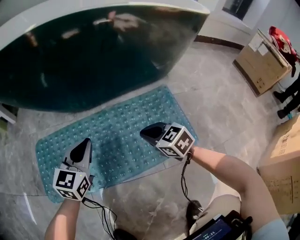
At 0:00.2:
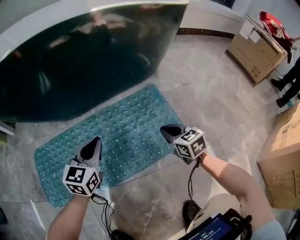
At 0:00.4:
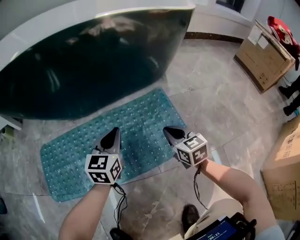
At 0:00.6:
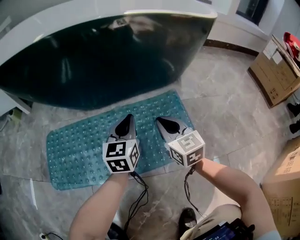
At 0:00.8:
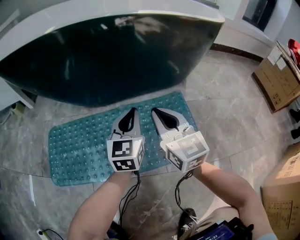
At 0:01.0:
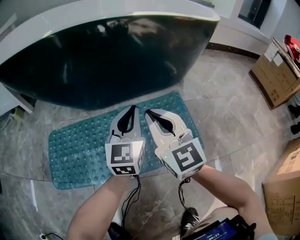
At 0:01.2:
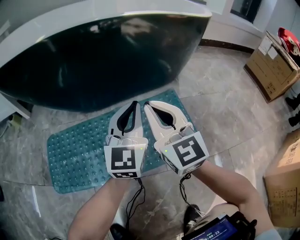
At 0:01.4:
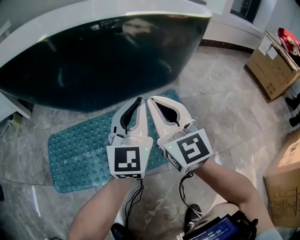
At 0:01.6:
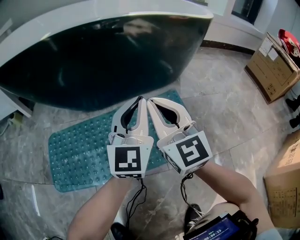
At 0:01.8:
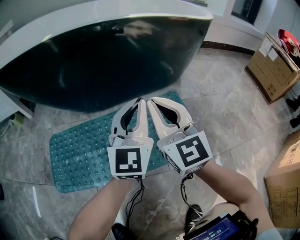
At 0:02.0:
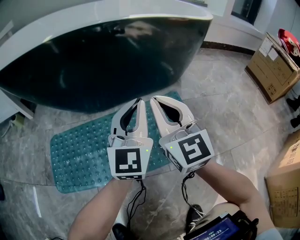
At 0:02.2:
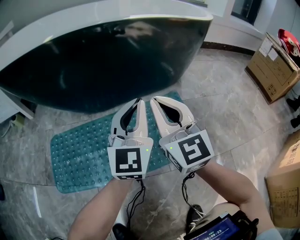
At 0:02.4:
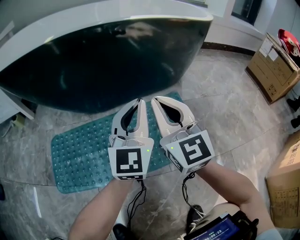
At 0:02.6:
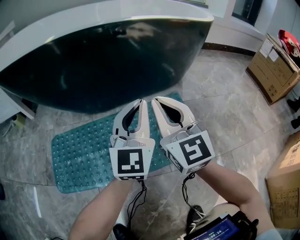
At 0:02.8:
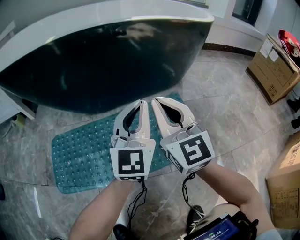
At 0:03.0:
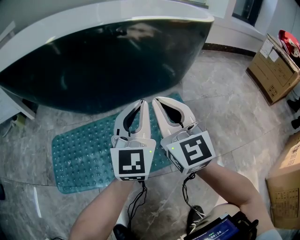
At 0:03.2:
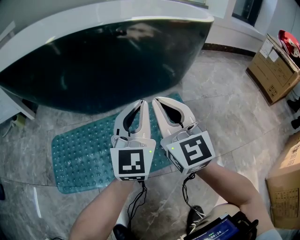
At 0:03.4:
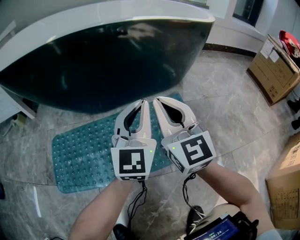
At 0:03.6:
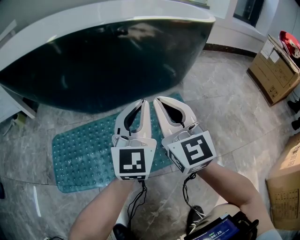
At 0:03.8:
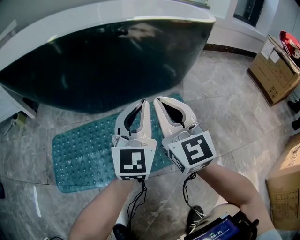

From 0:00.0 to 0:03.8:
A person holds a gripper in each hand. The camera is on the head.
From 0:00.0 to 0:01.2: The left gripper moves to the right and upward, some 25 cm, and swivels approximately 20 degrees; the right gripper heads upward, covering some 20 cm, and angles its fingers upward, by about 40 degrees.
From 0:01.2 to 0:02.6: The grippers stay close to where they were, moving slightly.
From 0:02.6 to 0:03.8: Both grippers stay about where they are.

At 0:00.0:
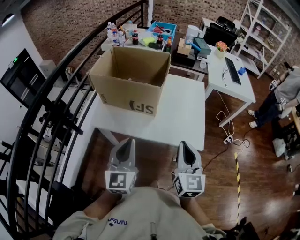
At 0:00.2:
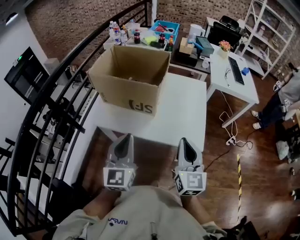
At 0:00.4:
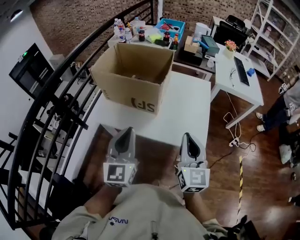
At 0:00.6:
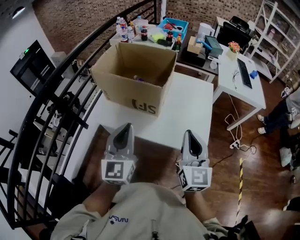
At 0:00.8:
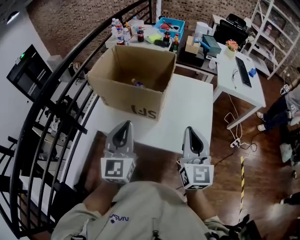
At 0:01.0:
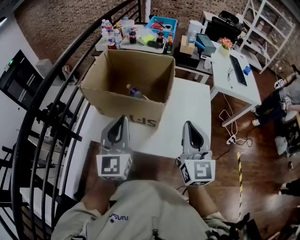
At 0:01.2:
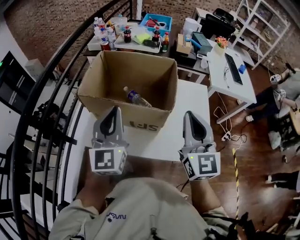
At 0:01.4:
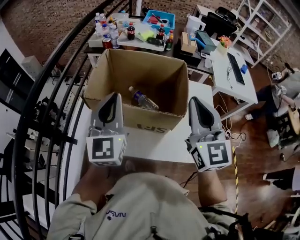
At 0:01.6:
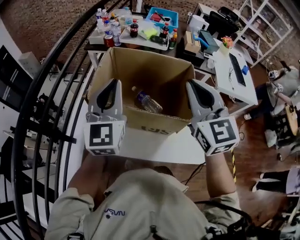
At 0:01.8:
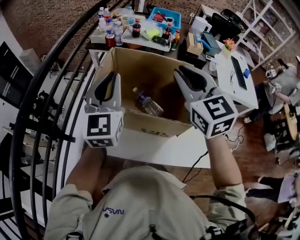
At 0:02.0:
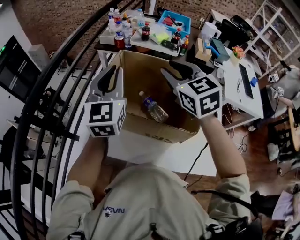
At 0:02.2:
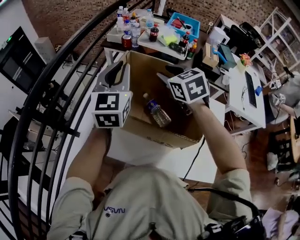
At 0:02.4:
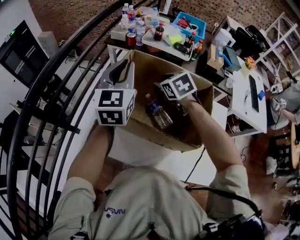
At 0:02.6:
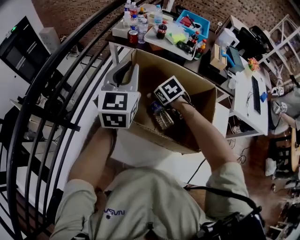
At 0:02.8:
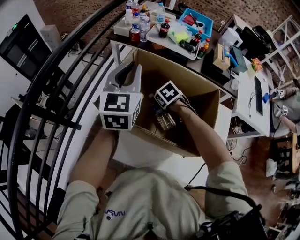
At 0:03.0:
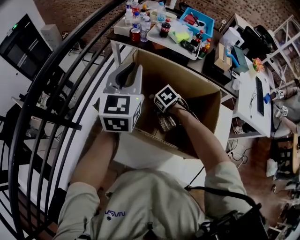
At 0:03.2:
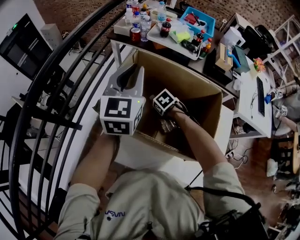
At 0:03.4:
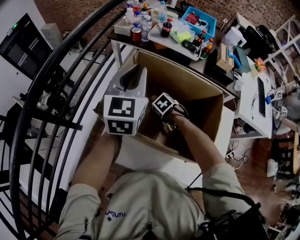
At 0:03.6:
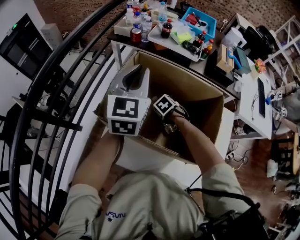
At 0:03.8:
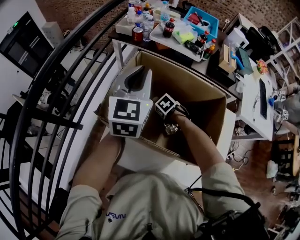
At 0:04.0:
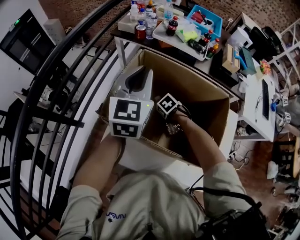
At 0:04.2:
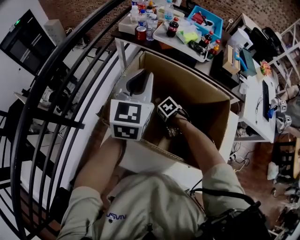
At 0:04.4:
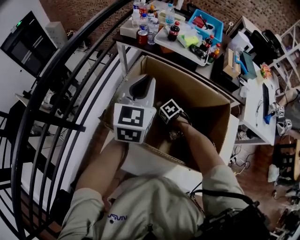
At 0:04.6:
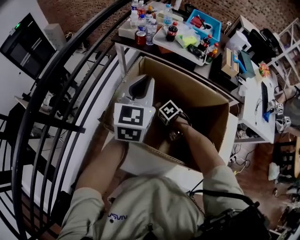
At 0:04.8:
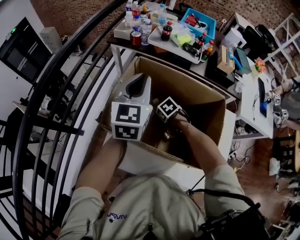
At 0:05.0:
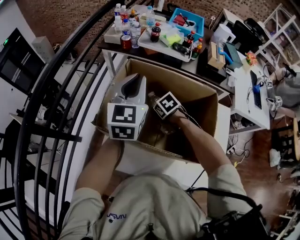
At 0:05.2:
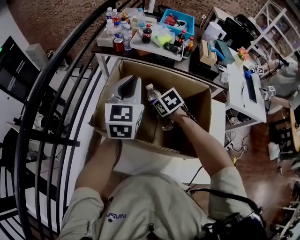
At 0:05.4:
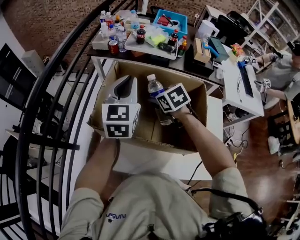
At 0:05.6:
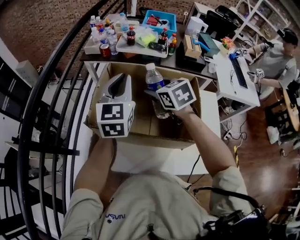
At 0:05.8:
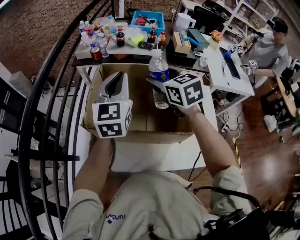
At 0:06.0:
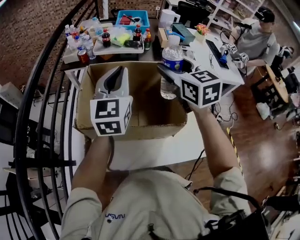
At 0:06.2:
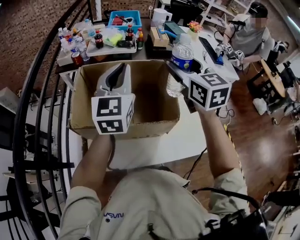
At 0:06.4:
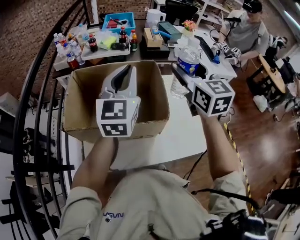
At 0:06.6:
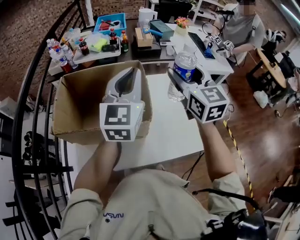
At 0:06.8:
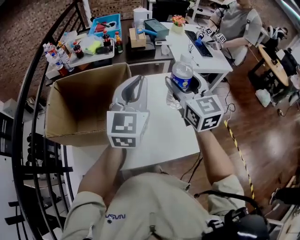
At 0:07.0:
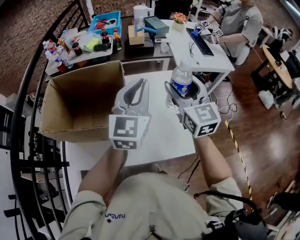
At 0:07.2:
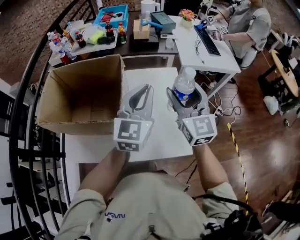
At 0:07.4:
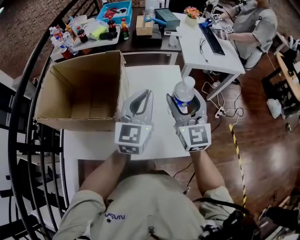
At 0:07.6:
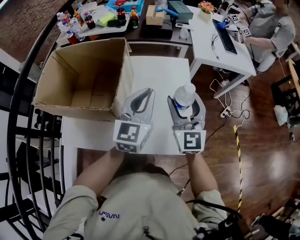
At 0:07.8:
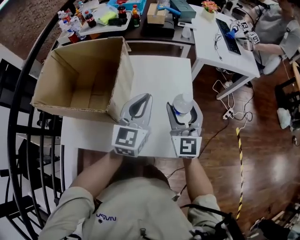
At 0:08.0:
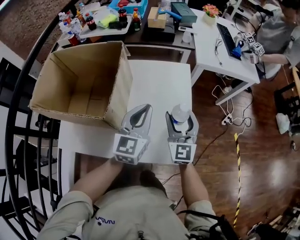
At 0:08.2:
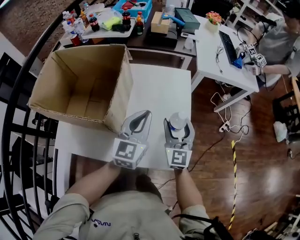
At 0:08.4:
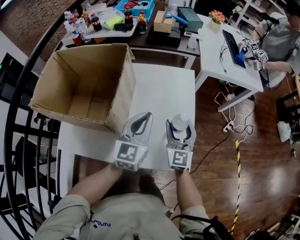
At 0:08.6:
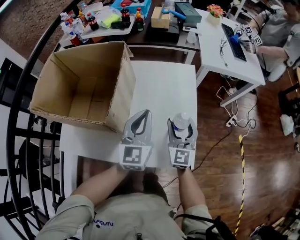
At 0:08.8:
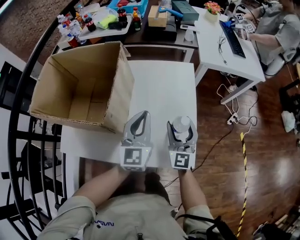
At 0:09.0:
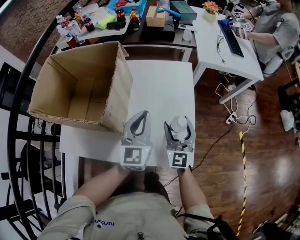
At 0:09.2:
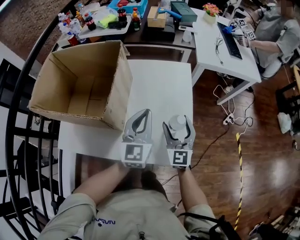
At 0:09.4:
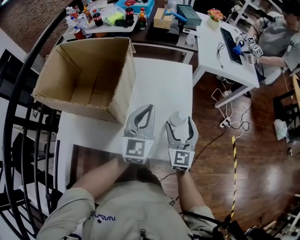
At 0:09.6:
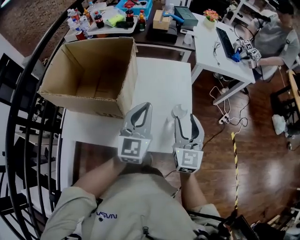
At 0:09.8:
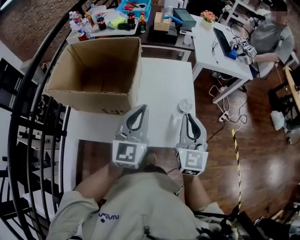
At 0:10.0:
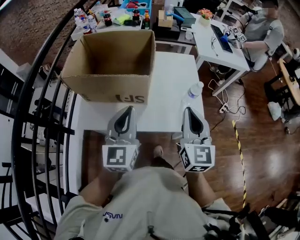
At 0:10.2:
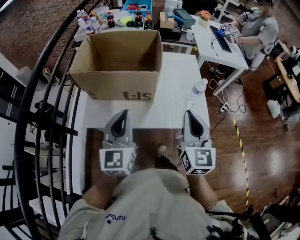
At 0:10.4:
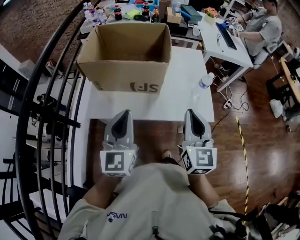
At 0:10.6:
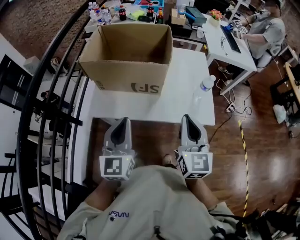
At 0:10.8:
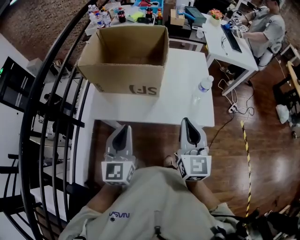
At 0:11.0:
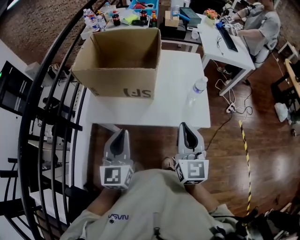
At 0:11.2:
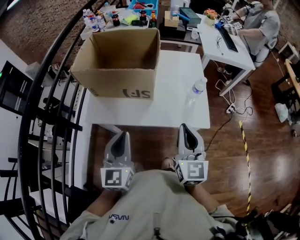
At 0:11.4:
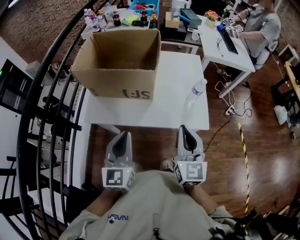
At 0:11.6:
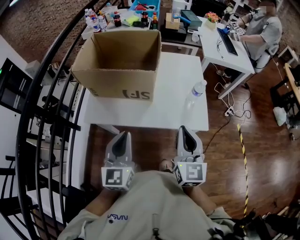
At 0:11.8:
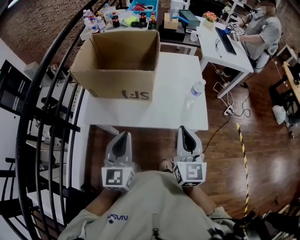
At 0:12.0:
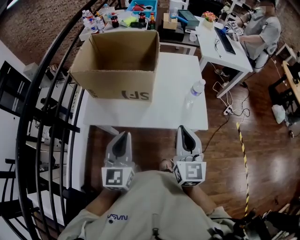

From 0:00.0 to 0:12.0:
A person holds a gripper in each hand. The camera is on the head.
From 0:00.0 to 0:01.6: The right gripper shifts about 40 cm forward, upward and to the left, and turns by some 20 degrees, while the left gripper shifts about 35 cm forward.
From 0:01.6 to 0:03.0: The left gripper moves some 15 cm. The right gripper heads downward, covering about 40 cm, angles its fingers downward, by about 70 degrees, and opens.
From 0:03.0 to 0:04.4: The right gripper shifts some 10 cm downward.
From 0:04.4 to 0:06.0: The right gripper moves upward, about 50 cm, and tips its fingers upward by about 60 degrees. Meanwhile the left gripper ends up about 10 cm from where it was.
From 0:06.0 to 0:07.6: The left gripper heads to the right, covering about 35 cm; the right gripper goes some 35 cm to the right and downward, and changes its angle by about 20 degrees.
From 0:07.6 to 0:09.0: The right gripper goes about 15 cm downward; the left gripper goes about 10 cm downward.
From 0:09.0 to 0:10.4: The right gripper goes roughly 35 cm backward, upward and to the left, and closes; the left gripper is displaced to the left, backward and upward by some 40 cm.
From 0:10.4 to 0:12.0: The right gripper changes place by approximately 5 cm, while the left gripper ends up about 5 cm from where it was.

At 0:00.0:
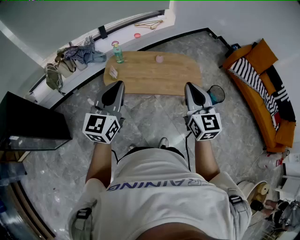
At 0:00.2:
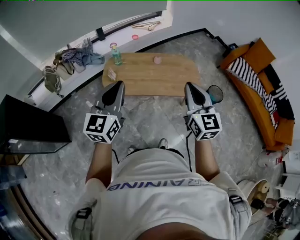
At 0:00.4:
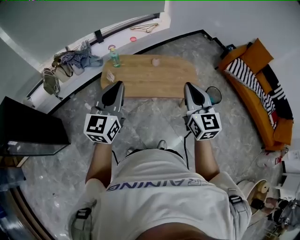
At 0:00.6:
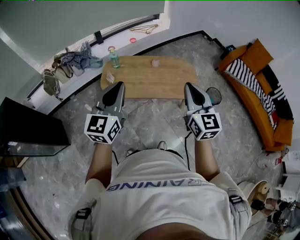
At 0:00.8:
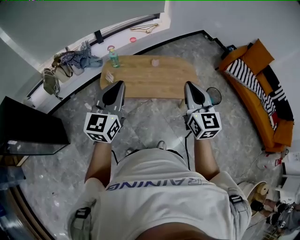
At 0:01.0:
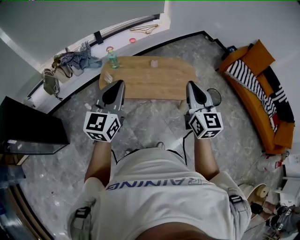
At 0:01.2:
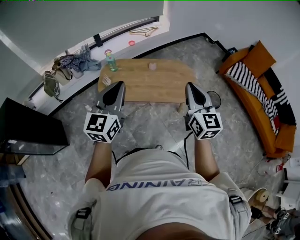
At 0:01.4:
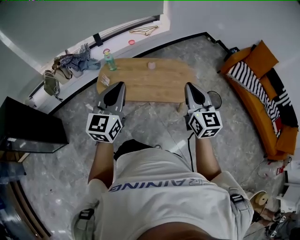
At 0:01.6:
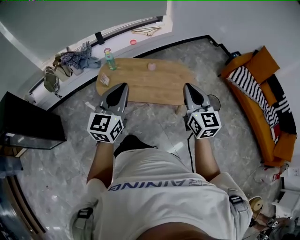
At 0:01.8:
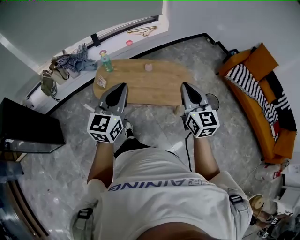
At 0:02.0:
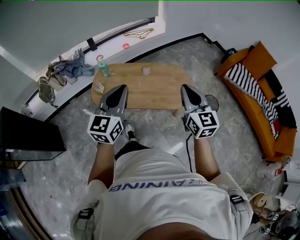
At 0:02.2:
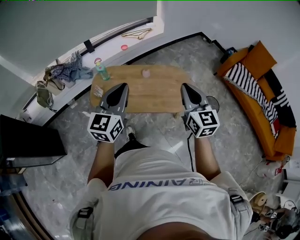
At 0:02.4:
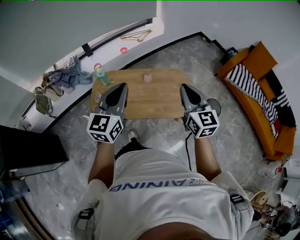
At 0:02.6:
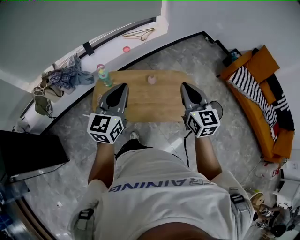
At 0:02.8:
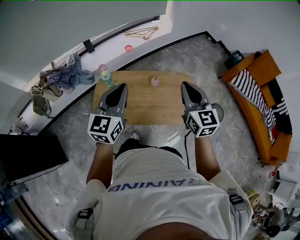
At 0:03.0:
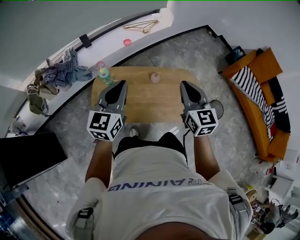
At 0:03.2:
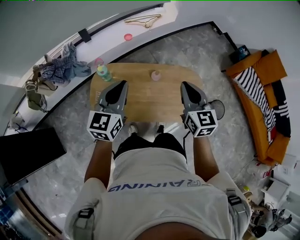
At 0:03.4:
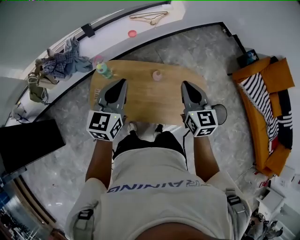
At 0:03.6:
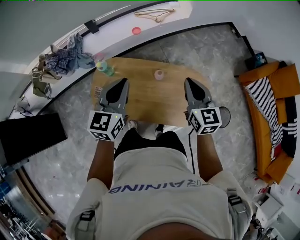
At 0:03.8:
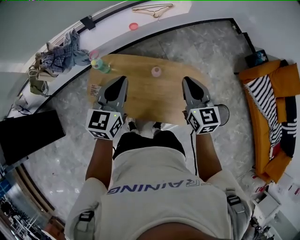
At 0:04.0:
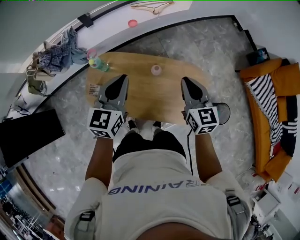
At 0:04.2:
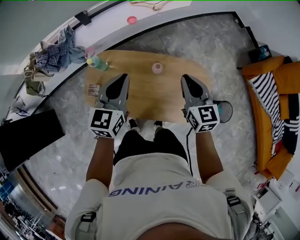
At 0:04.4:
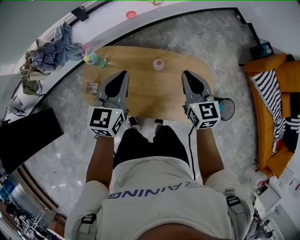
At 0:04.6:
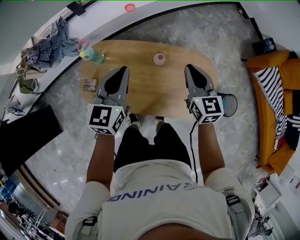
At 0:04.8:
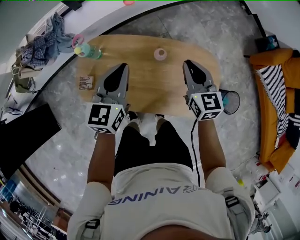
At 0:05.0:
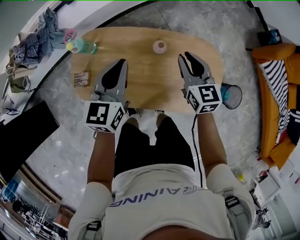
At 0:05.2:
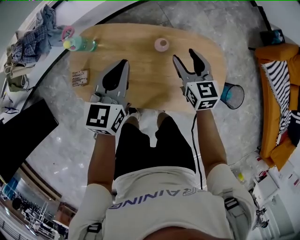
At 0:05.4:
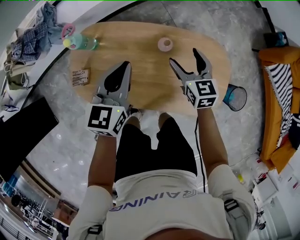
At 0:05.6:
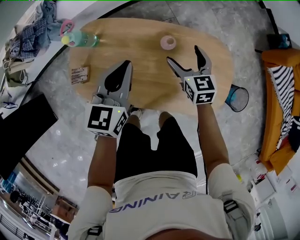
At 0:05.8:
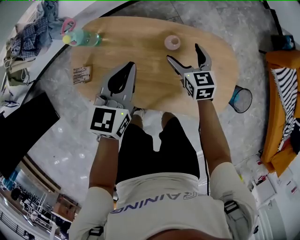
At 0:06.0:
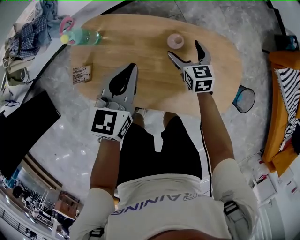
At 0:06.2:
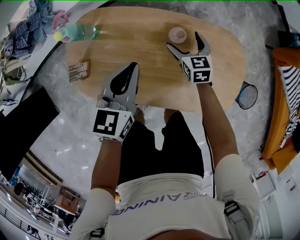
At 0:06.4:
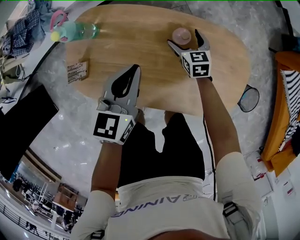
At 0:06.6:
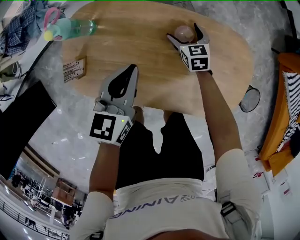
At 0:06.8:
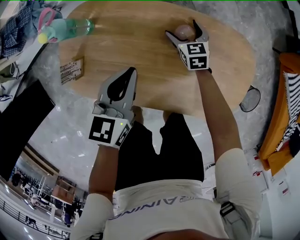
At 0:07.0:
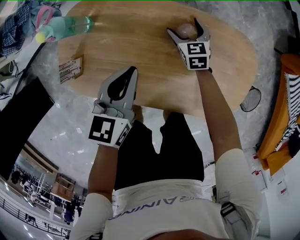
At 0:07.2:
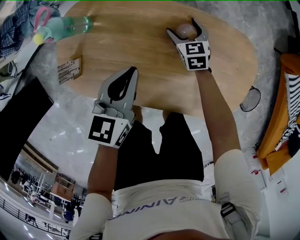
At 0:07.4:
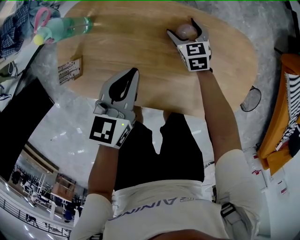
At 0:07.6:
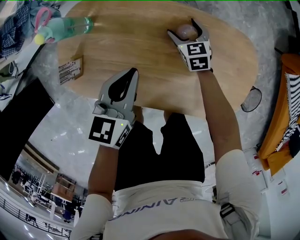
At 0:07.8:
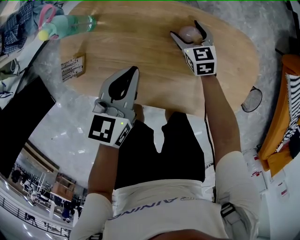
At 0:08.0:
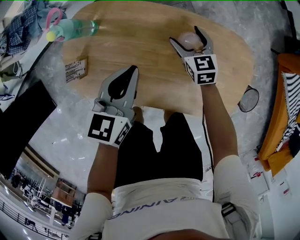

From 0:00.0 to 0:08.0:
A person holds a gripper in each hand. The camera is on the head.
From 0:00.0 to 0:01.6: The right gripper heads to the right and forward, covering approximately 15 cm; the left gripper is displaced to the right by roughly 15 cm.
From 0:01.6 to 0:03.2: Both grippers move forward, about 35 cm.
From 0:03.2 to 0:04.8: The two grippers go some 25 cm downward and forward.
From 0:04.8 to 0:06.4: The left gripper travels downward by some 15 cm. Meanwhile the right gripper is displaced downward by roughly 35 cm, rotates some 20 degrees, and opens its fingers.
From 0:06.4 to 0:08.0: The grippers stay close to where they were, moving slightly.
